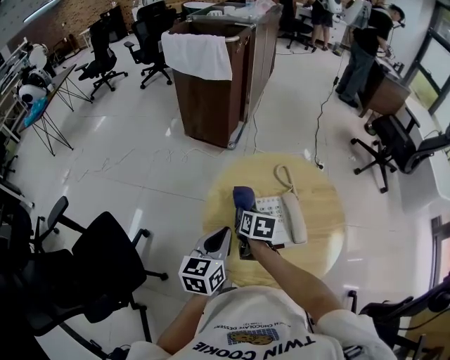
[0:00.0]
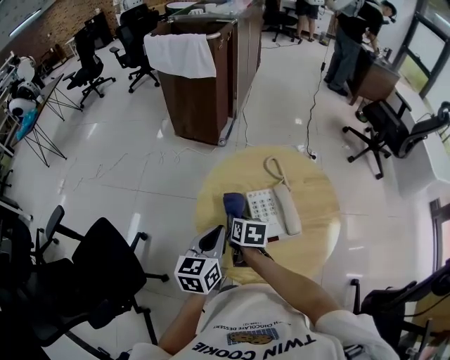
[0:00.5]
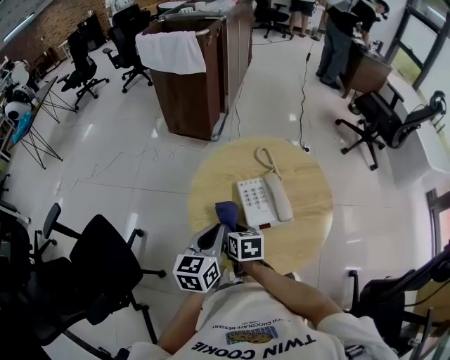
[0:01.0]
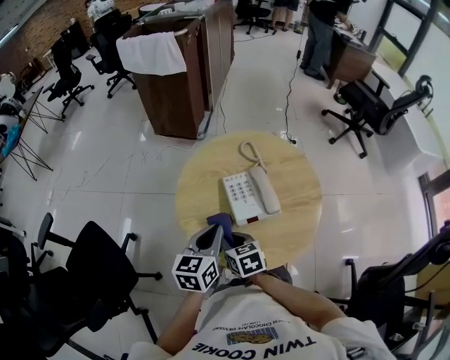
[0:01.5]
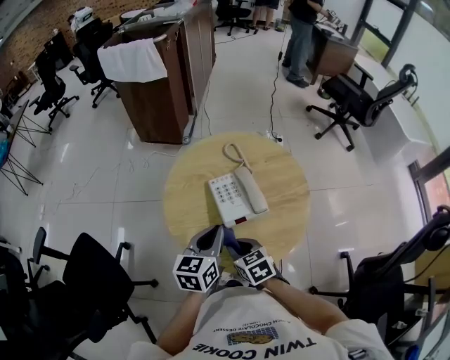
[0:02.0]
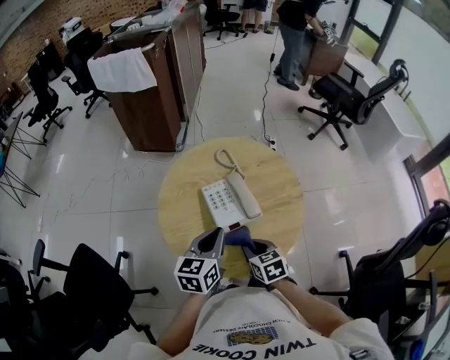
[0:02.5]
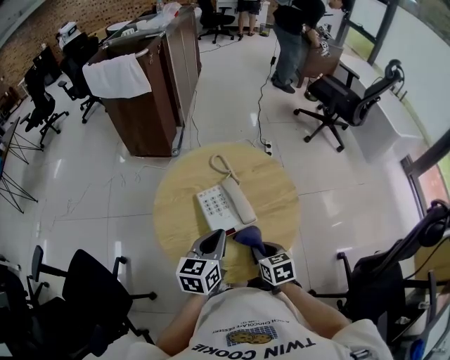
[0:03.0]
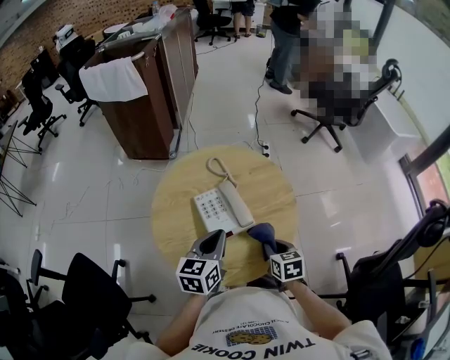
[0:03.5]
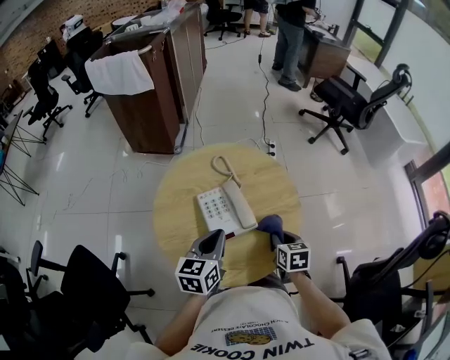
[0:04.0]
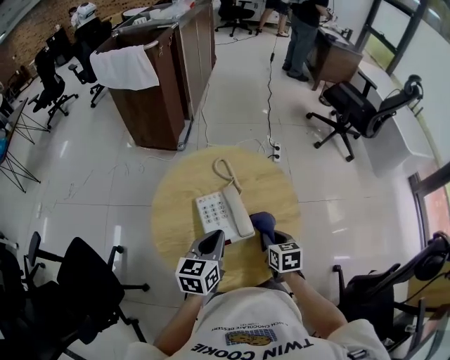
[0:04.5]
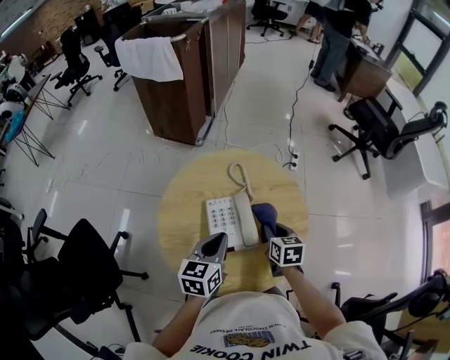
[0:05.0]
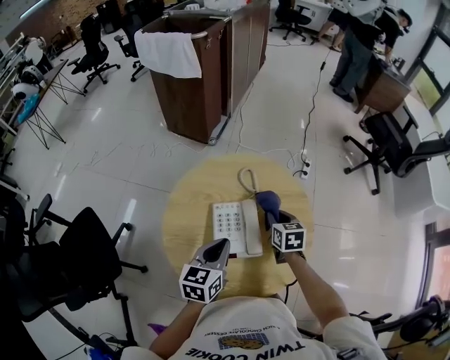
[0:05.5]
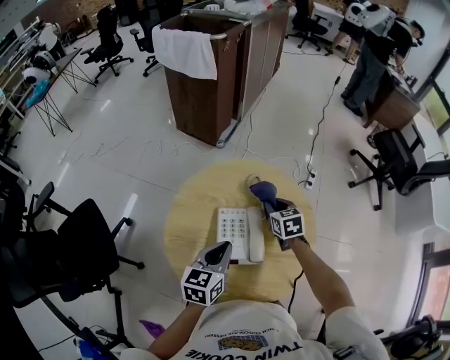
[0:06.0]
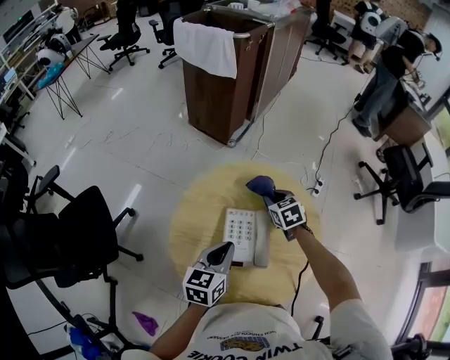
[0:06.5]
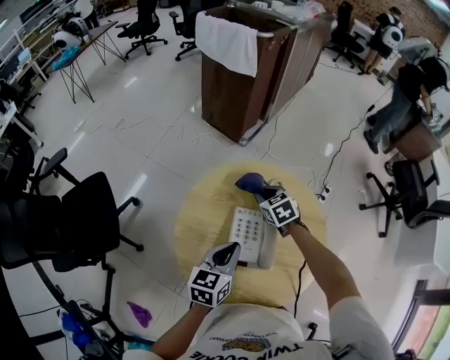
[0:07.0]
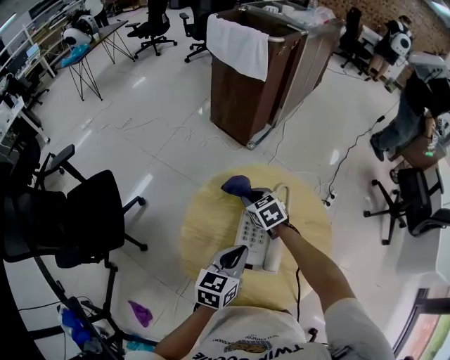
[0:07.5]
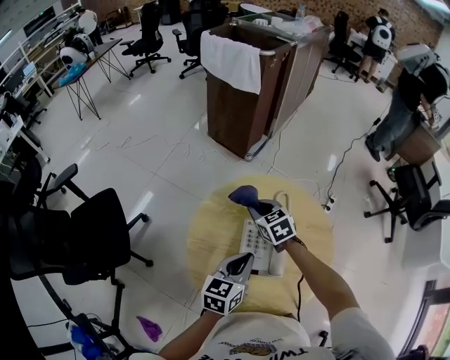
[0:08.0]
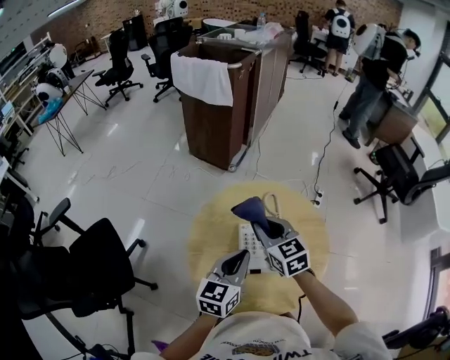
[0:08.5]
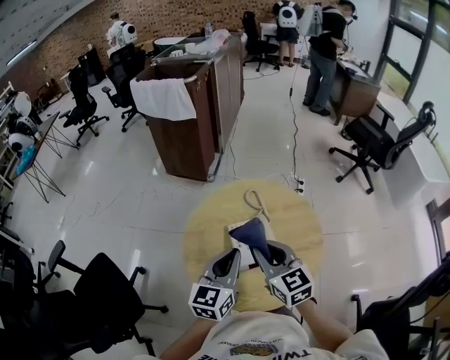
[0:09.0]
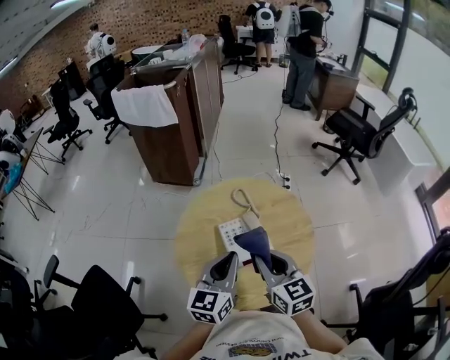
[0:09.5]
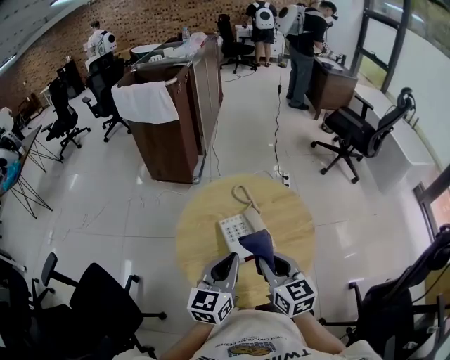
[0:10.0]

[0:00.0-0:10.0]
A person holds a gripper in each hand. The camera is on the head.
0:00.0 to 0:02.0: The left gripper travels to the right and backward by some 10 cm; the right gripper travels backward by some 20 cm, and turns by approximately 20 degrees.
0:02.0 to 0:04.0: The right gripper moves to the right, some 20 cm, and rotates roughly 30 degrees; the left gripper changes place by some 5 cm.
0:04.0 to 0:06.0: The right gripper shifts about 25 cm forward and to the left, and changes its angle by some 30 degrees.
0:06.0 to 0:08.0: The right gripper is displaced to the left by about 20 cm, and turns by some 30 degrees.
0:08.0 to 0:10.0: The left gripper goes some 10 cm upward, and turns by some 30 degrees, while the right gripper shifts by roughly 30 cm, and changes its angle by some 50 degrees.

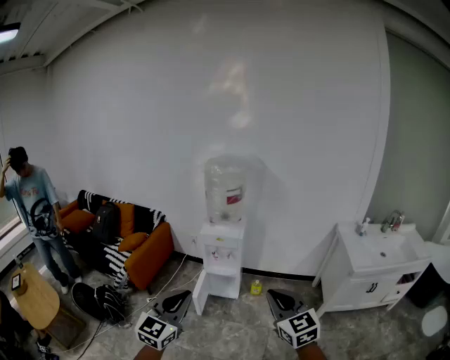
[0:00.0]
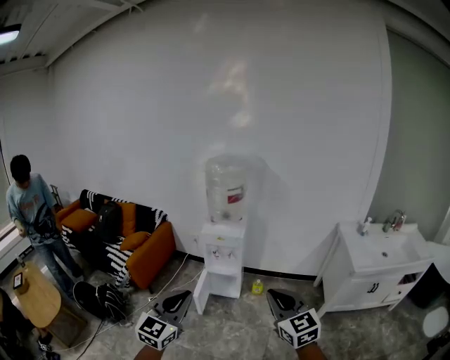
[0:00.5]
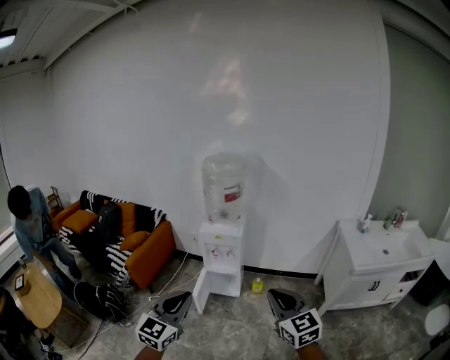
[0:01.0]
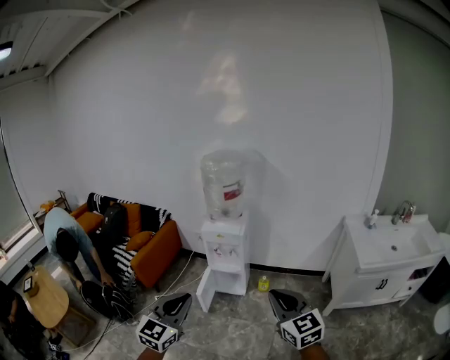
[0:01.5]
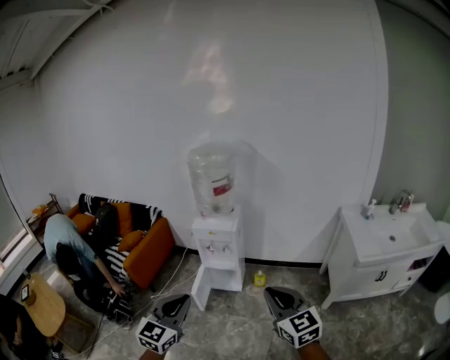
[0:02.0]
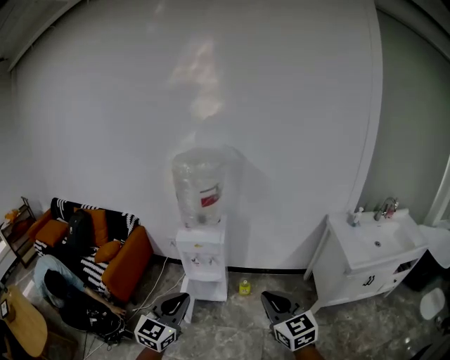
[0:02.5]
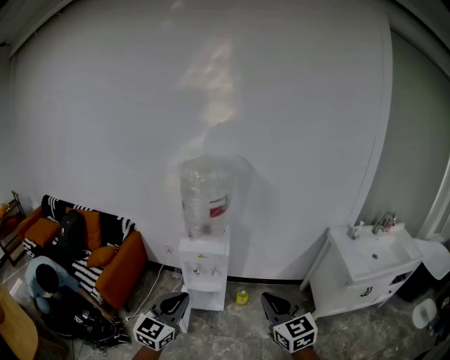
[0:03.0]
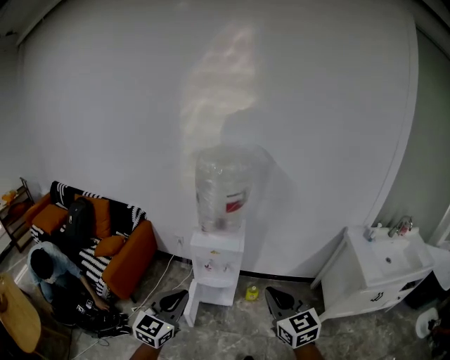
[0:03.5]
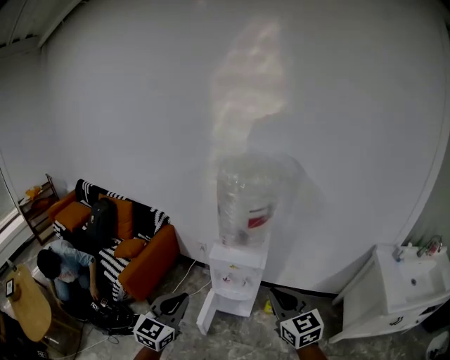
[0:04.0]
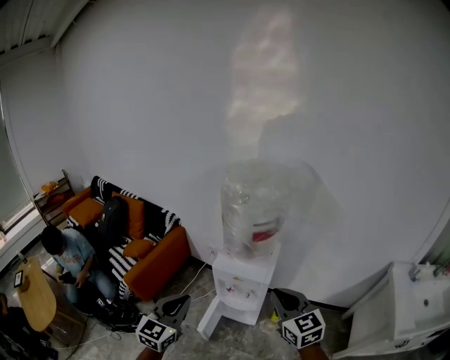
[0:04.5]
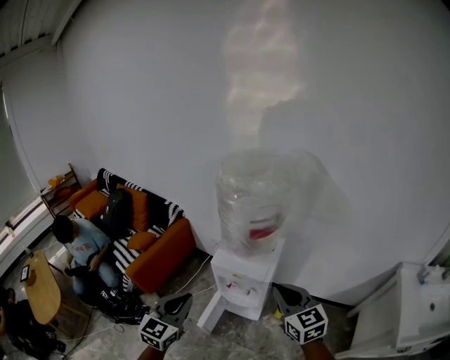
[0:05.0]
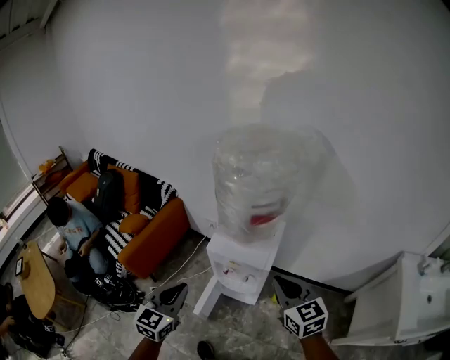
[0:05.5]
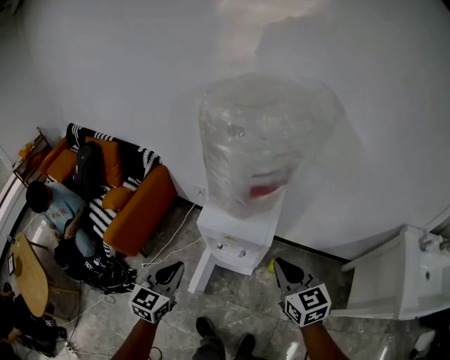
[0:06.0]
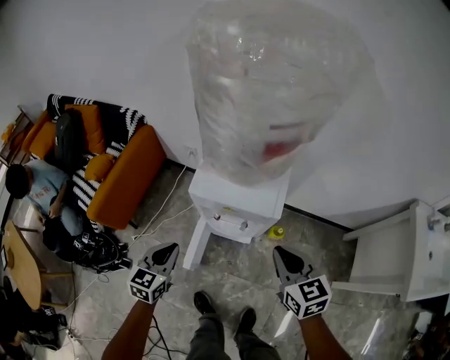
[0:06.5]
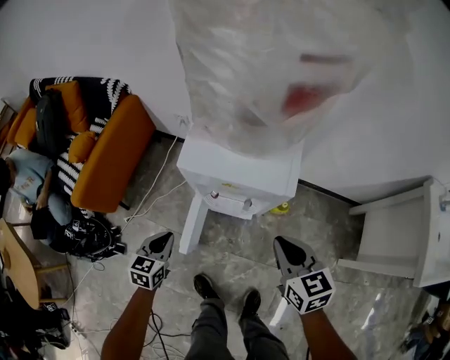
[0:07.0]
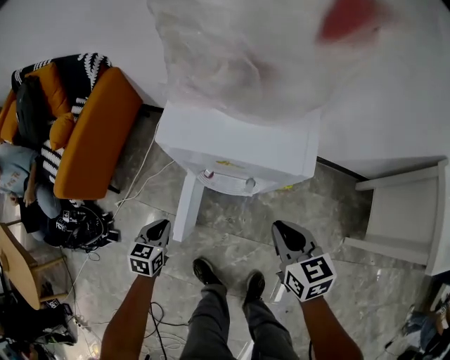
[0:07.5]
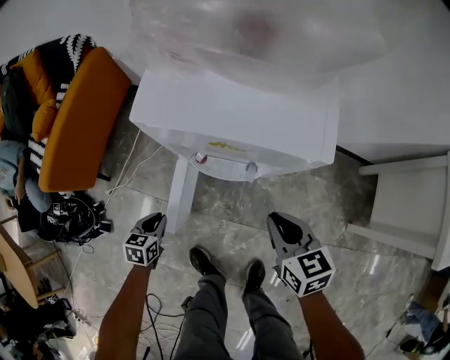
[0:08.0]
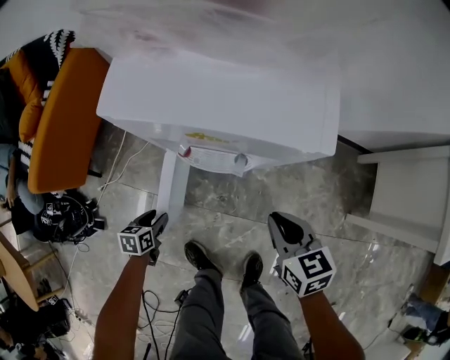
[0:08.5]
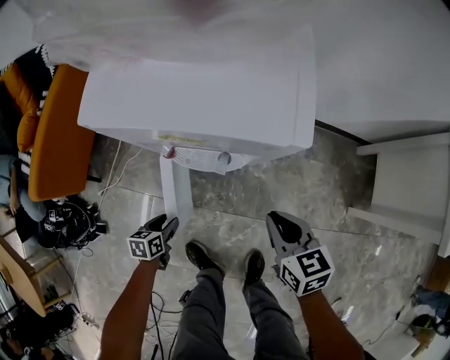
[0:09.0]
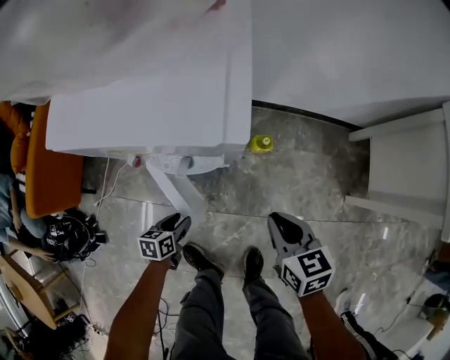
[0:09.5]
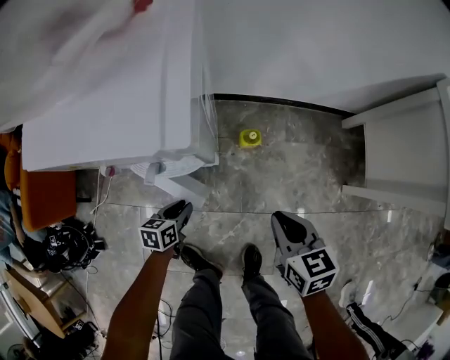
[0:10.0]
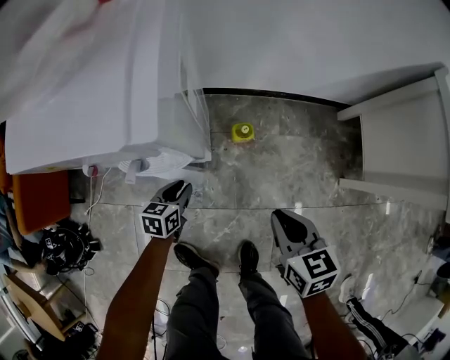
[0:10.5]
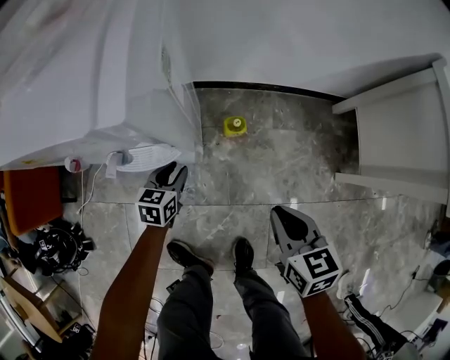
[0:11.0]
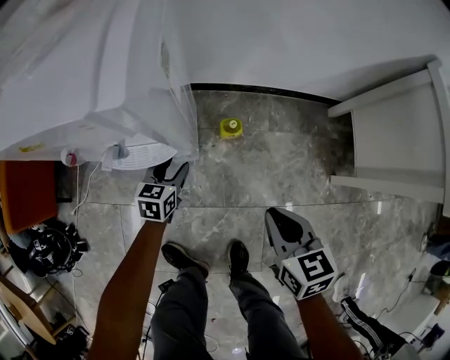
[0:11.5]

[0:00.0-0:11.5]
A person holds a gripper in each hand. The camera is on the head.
0:00.0 to 0:02.0: Both grippers move to the right, roughly 5 cm.
0:02.0 to 0:04.0: Both grippers move forward and to the left, about 30 cm.
0:04.0 to 0:06.0: The left gripper is displaced downward and forward by roughly 20 cm, while the right gripper shifts roughly 20 cm forward and downward.
0:06.0 to 0:07.5: The two grippers go roughly 35 cm downward. The left gripper changes its angle by about 30 degrees. Meanwhile the right gripper rotates about 20 degrees.
0:07.5 to 0:09.5: The left gripper is displaced to the right and downward by some 20 cm, changes its angle by approximately 30 degrees, and opens. Meanwhile the right gripper goes some 15 cm downward and to the right.
0:09.5 to 0:11.5: The left gripper moves forward and to the right, about 20 cm, and turns by approximately 30 degrees. The right gripper goes about 10 cm to the right.

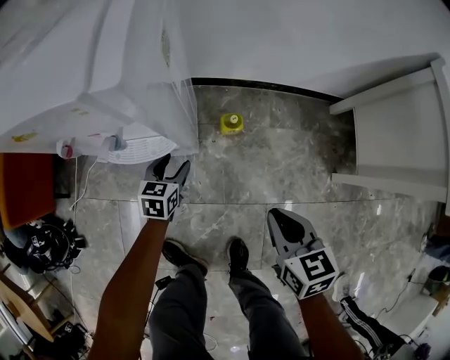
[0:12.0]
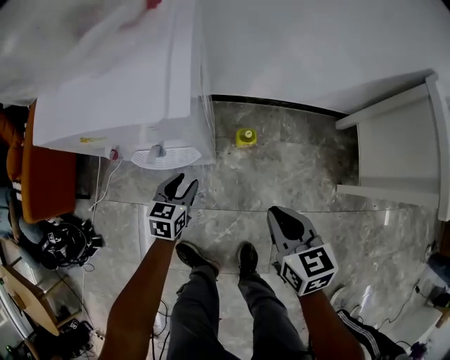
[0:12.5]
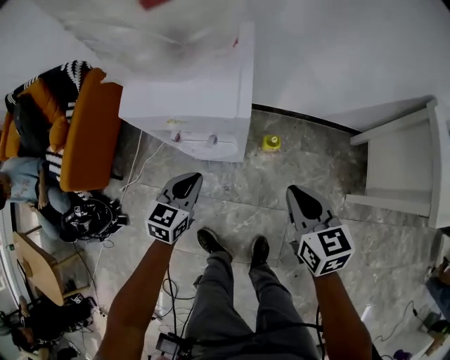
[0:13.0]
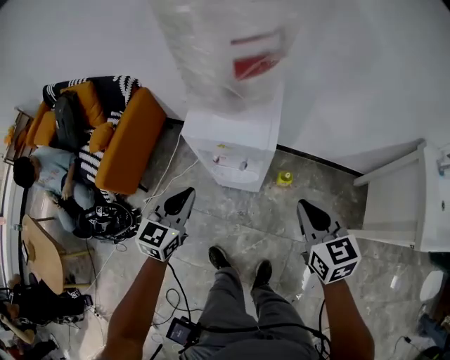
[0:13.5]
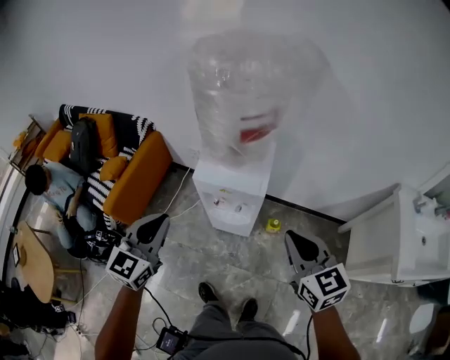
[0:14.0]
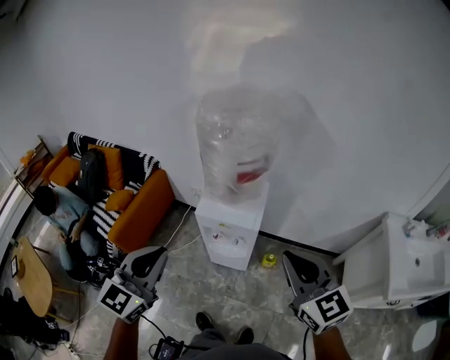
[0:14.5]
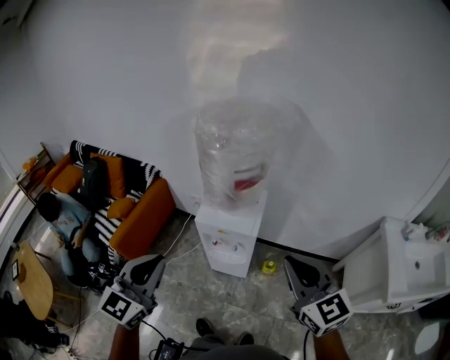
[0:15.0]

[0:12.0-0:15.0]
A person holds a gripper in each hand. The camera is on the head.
0:12.0 to 0:13.5: Both grippers travel together upward, roughly 40 cm. The right gripper swivels approximately 20 degrees; the left gripper rotates approximately 30 degrees, and closes.
0:13.5 to 0:15.0: The grippers both shift upward by about 25 cm. The right gripper changes its angle by approximately 30 degrees.

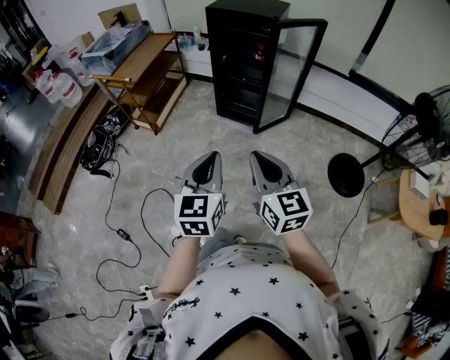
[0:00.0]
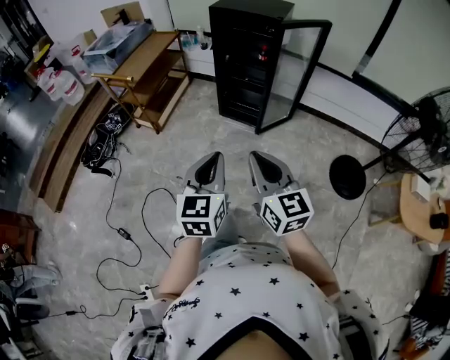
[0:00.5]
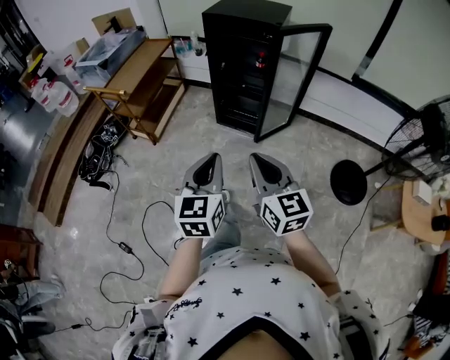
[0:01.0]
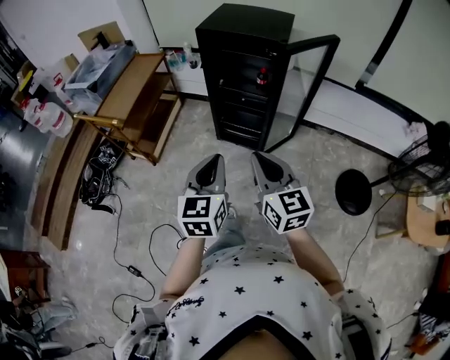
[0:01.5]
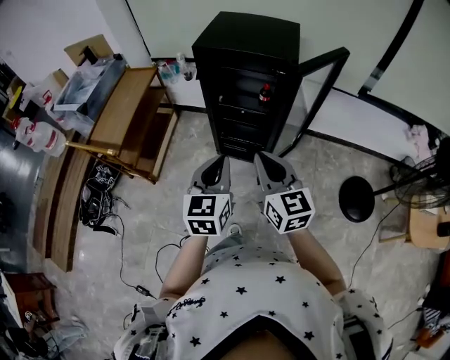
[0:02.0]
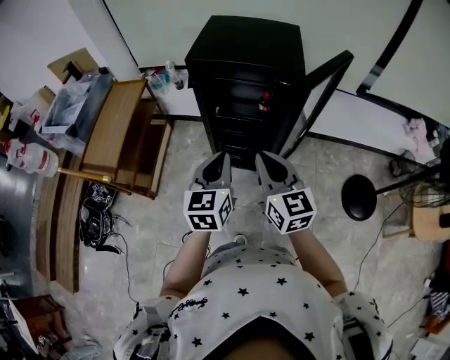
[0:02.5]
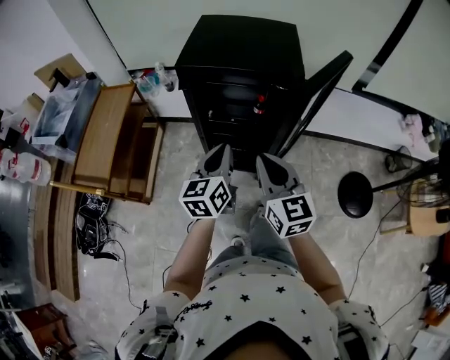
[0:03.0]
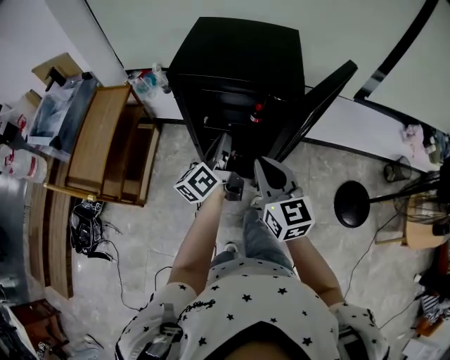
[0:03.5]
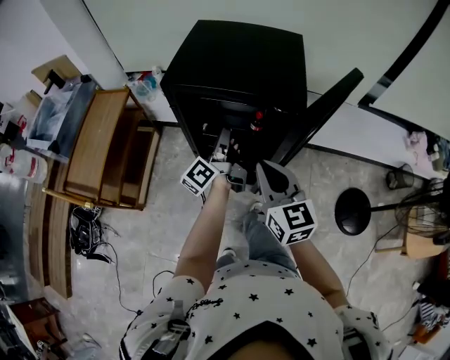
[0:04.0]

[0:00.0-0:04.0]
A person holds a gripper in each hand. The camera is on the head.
0:00.0 to 0:02.0: The two grippers travel together, forward, roughly 40 cm.
0:02.0 to 0:04.0: The right gripper shifts some 20 cm forward. Meanwhile the left gripper goes about 35 cm forward, and rolls counterclockwise, seen from behind, by approximately 60 degrees.
